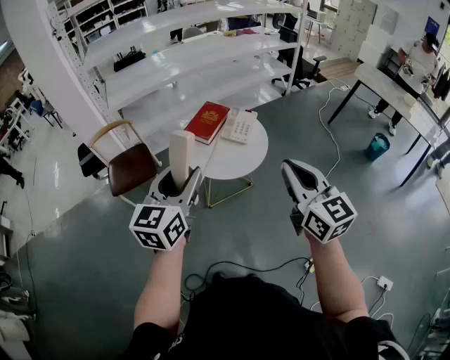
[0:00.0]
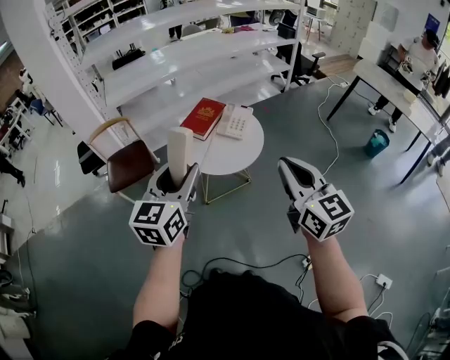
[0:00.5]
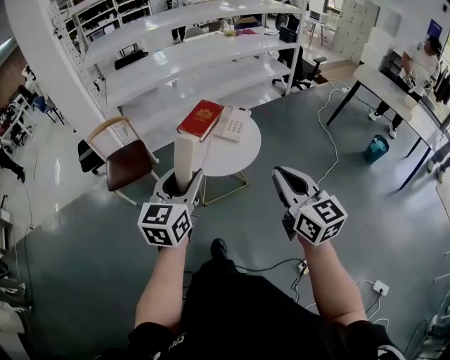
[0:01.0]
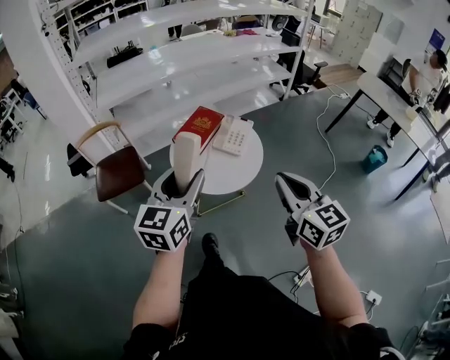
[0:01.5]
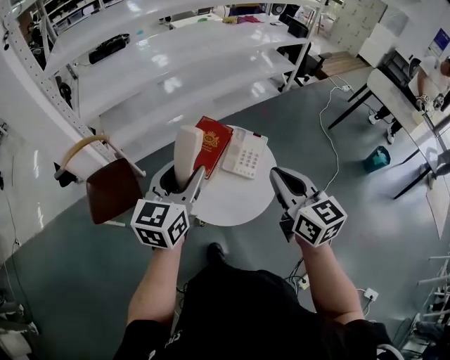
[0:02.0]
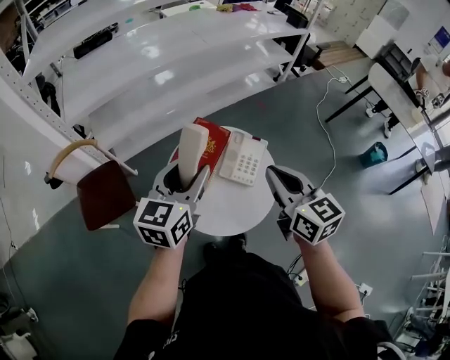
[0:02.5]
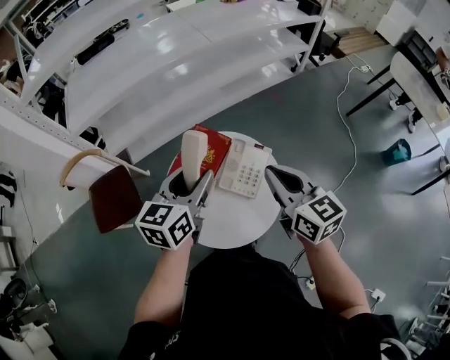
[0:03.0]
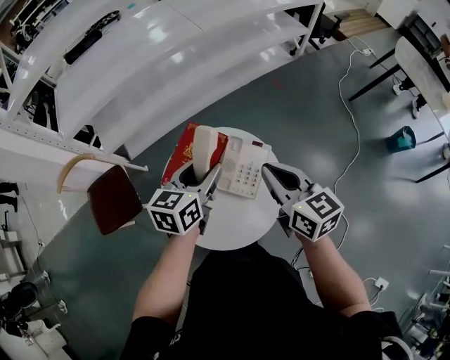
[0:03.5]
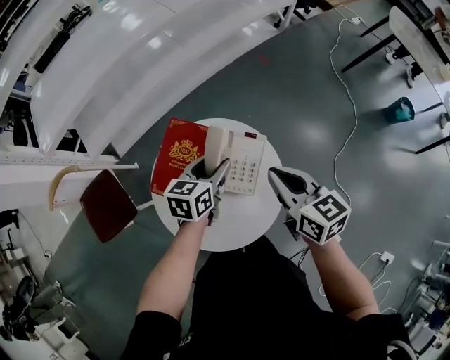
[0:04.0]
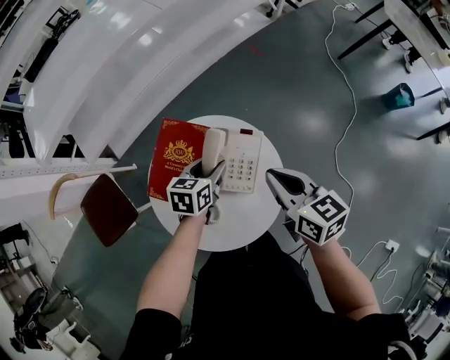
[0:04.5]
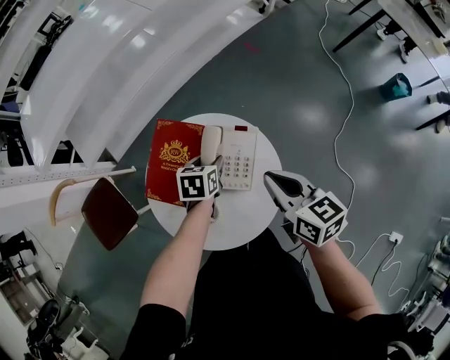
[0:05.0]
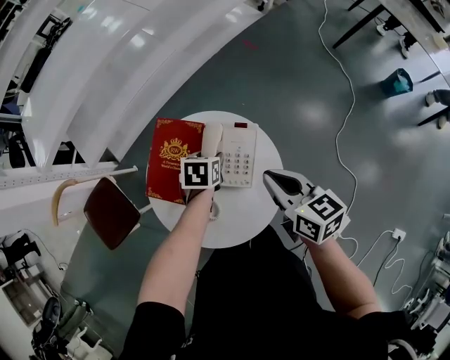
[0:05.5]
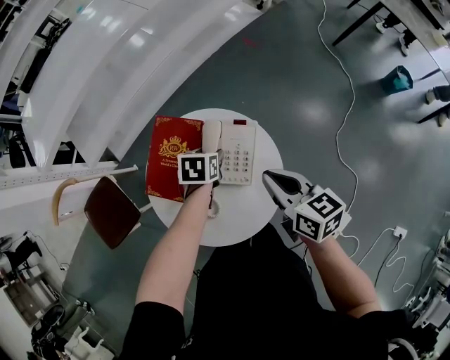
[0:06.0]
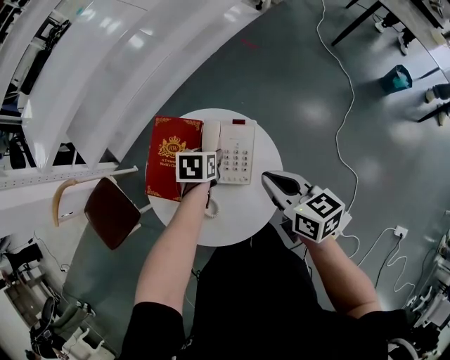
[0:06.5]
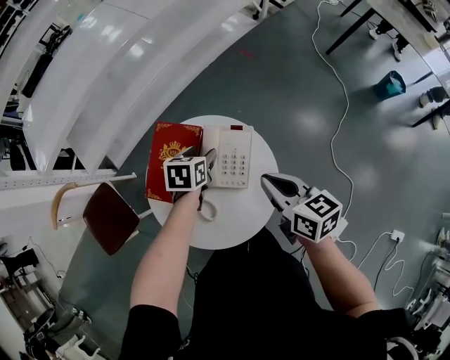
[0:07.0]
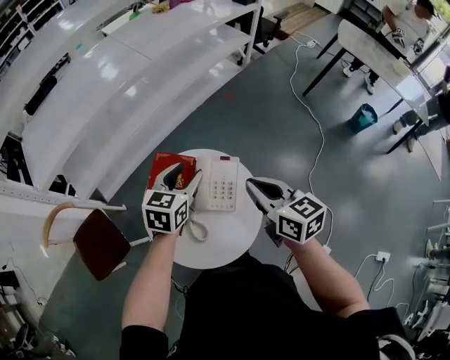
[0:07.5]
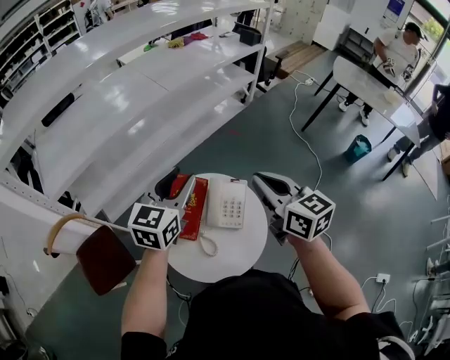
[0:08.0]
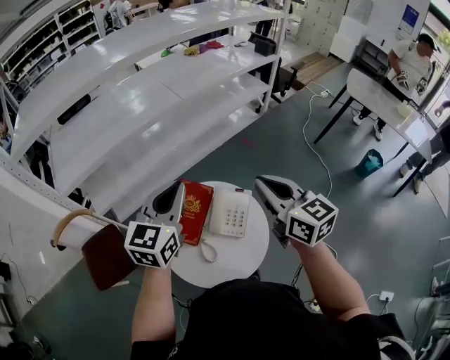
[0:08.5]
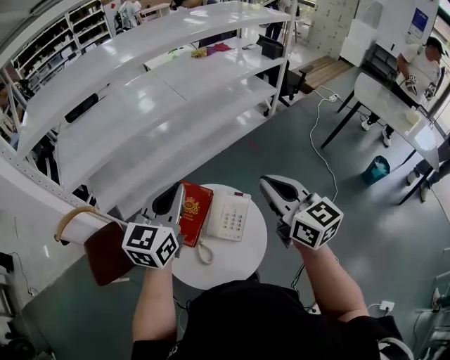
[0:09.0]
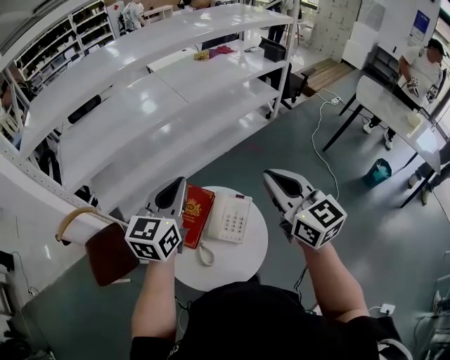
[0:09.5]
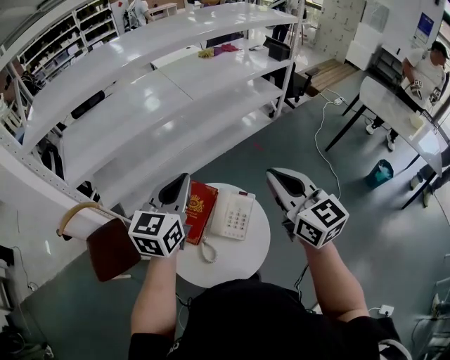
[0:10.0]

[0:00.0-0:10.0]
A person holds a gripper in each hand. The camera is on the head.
0:00.0 to 0:02.0: The grippers both shift forward by roughly 30 cm.
0:02.0 to 0:04.0: The right gripper travels forward, downward and to the right by about 25 cm, and rotates roughly 20 degrees, while the left gripper shifts approximately 35 cm downward, forward and to the right, and turns by some 30 degrees.
0:04.0 to 0:06.0: The left gripper goes some 10 cm downward, and rotates roughly 30 degrees. Meanwhile the right gripper heads downward, covering about 5 cm.
0:06.0 to 0:08.0: The left gripper travels upward by roughly 35 cm, and angles its fingers upward, by about 50 degrees. Meanwhile the right gripper goes some 20 cm upward, and changes its angle by approximately 20 degrees.
0:08.0 to 0:10.0: The left gripper changes place by roughly 5 cm, and closes. The right gripper heads upward, covering roughly 5 cm.

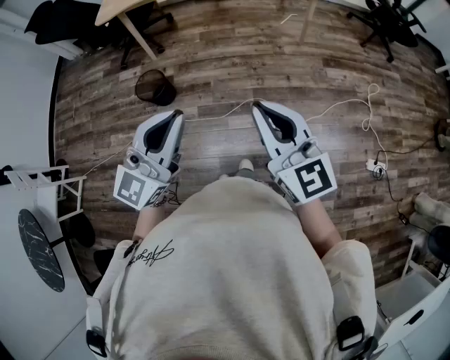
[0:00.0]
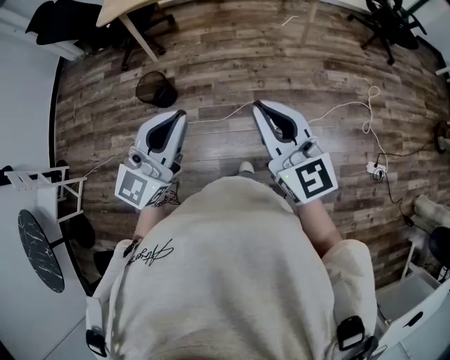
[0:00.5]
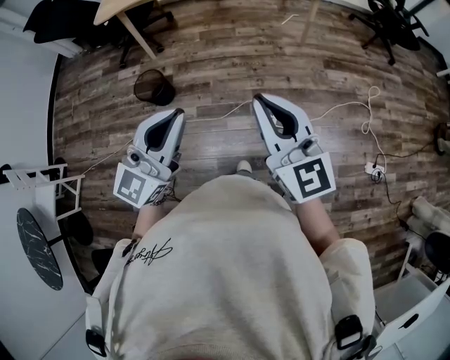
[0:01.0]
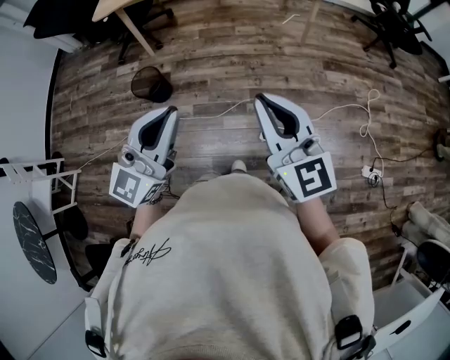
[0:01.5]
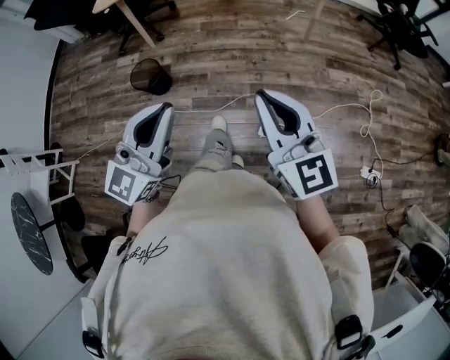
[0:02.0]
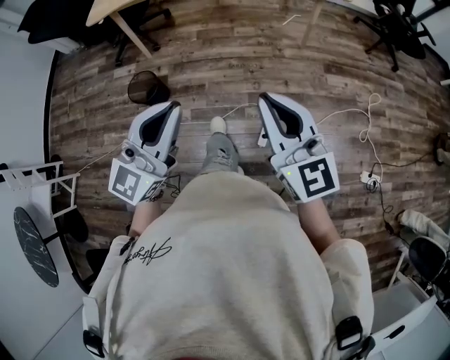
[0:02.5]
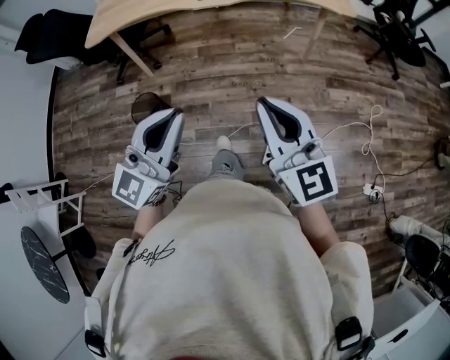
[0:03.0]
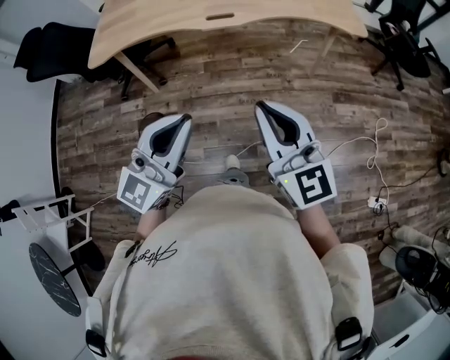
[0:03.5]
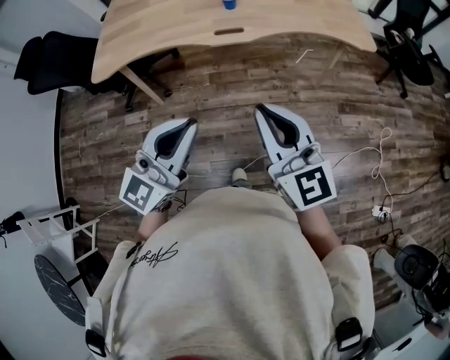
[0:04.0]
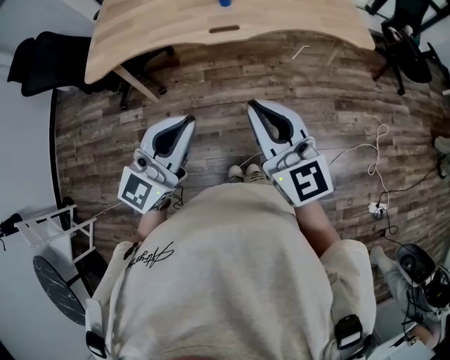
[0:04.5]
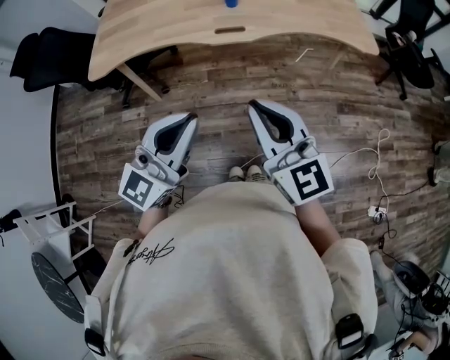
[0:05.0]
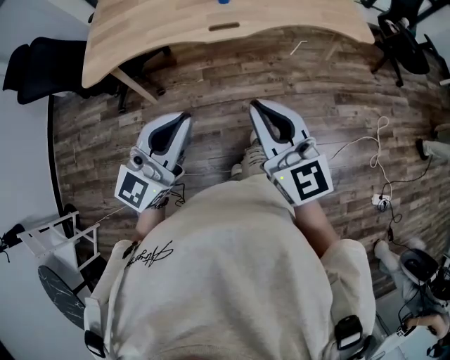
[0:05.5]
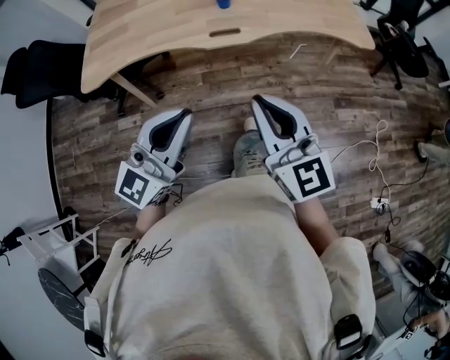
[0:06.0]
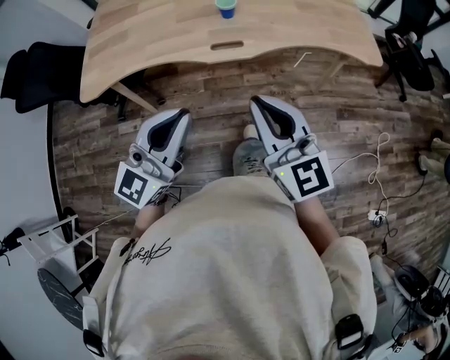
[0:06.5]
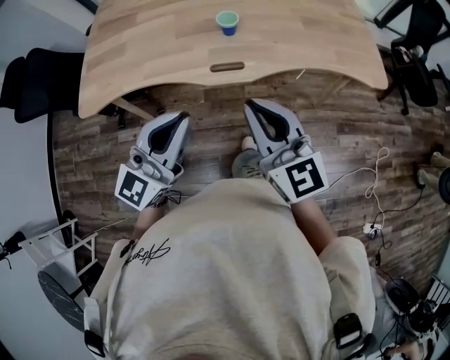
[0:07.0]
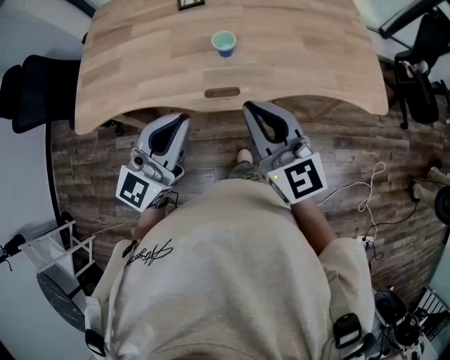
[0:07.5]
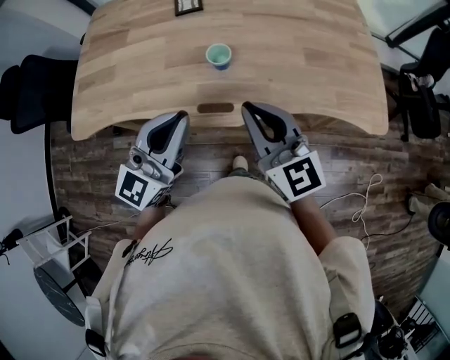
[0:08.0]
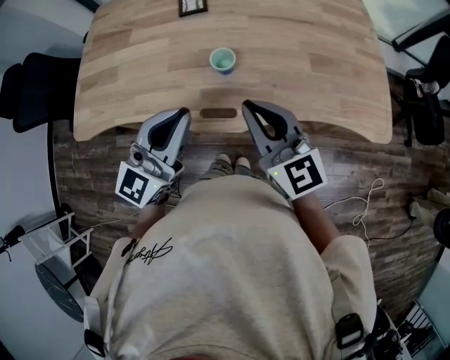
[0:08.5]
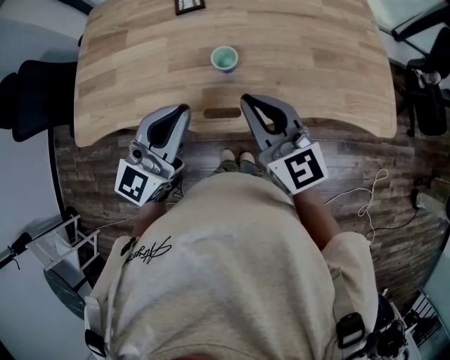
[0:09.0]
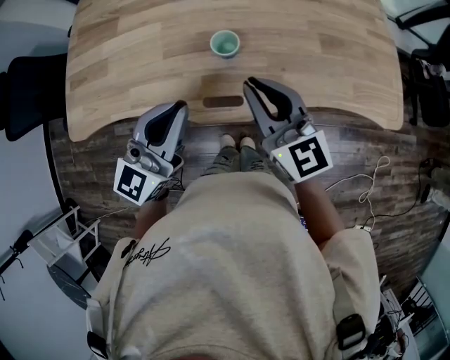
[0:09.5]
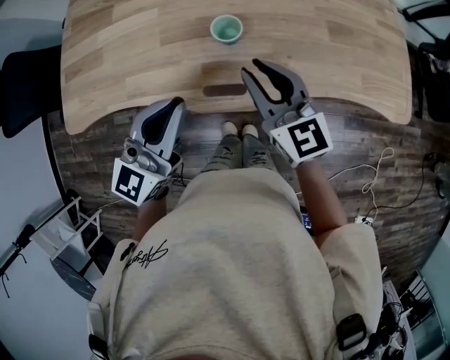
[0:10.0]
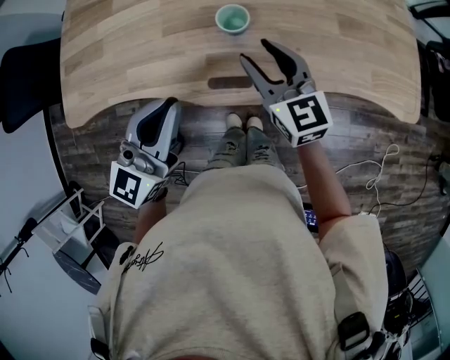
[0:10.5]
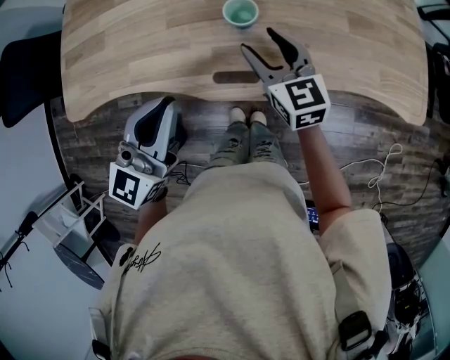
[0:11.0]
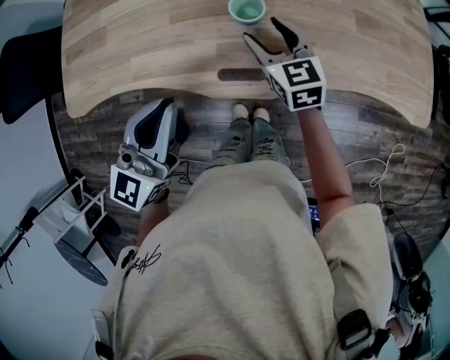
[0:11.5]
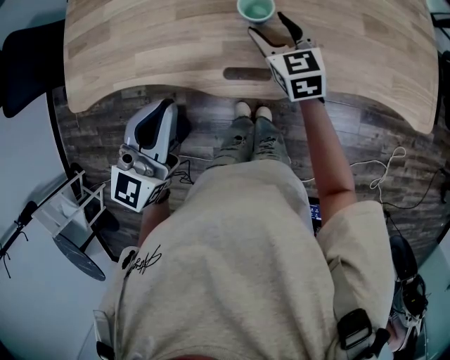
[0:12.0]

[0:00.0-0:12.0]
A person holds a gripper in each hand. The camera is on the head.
0:00.0 to 0:02.0: The right gripper changes place by about 5 cm.
0:02.0 to 0:04.0: The grippers both shift forward by some 30 cm.
0:04.0 to 0:06.0: The grippers both shift forward by about 5 cm.
0:06.0 to 0:08.0: Both grippers travel together forward, about 30 cm.
0:08.0 to 0:10.0: The right gripper goes some 10 cm downward and forward. The left gripper shifts approximately 5 cm downward.
0:10.0 to 0:12.0: The right gripper is displaced downward and forward by approximately 15 cm, and opens up. The left gripper goes roughly 5 cm to the left.

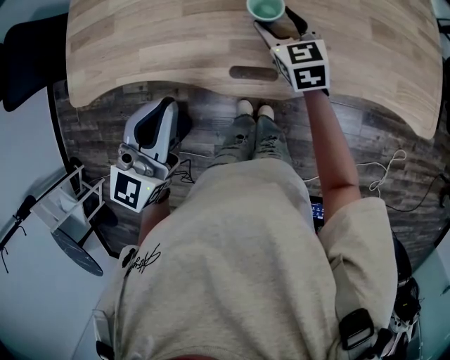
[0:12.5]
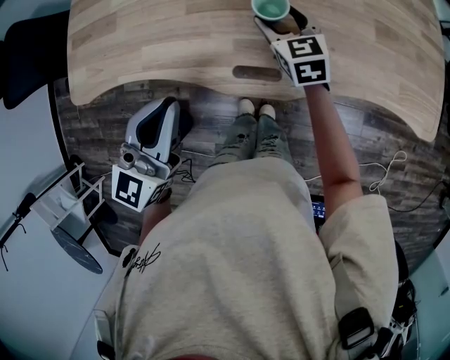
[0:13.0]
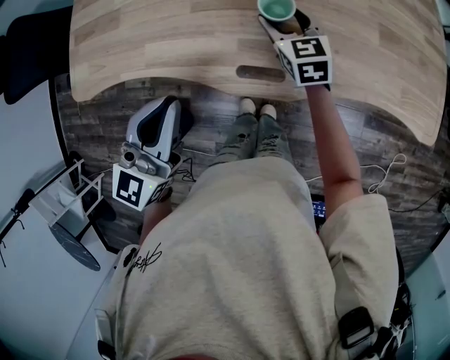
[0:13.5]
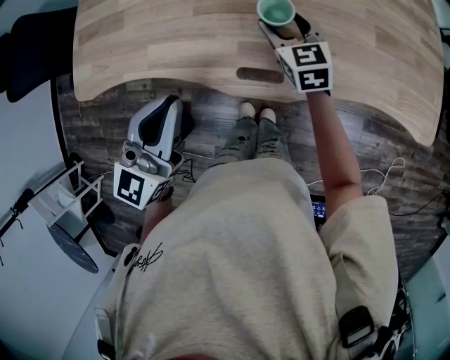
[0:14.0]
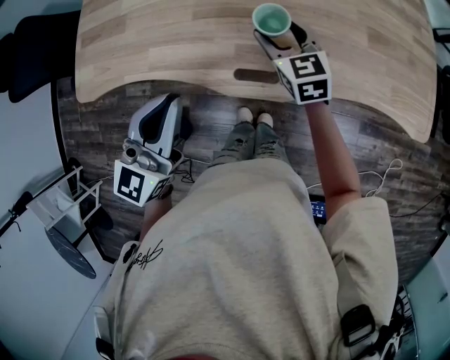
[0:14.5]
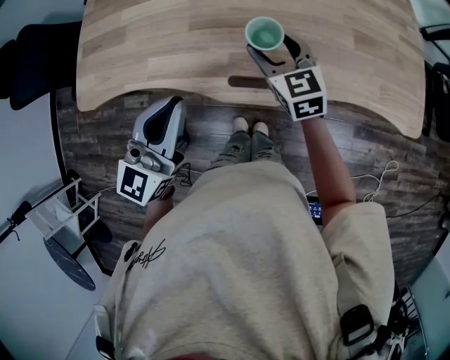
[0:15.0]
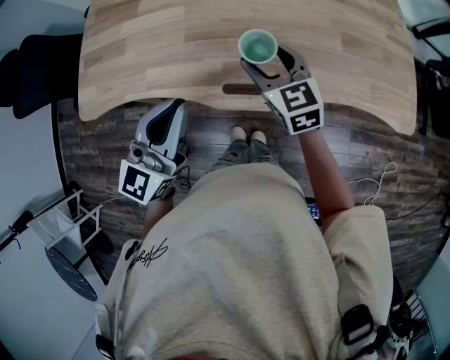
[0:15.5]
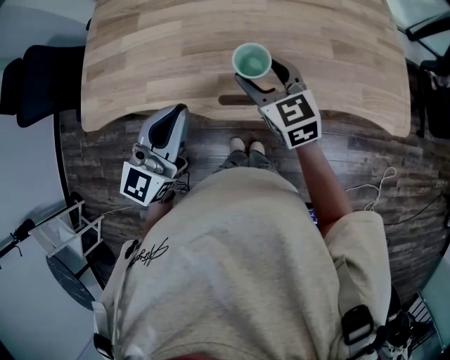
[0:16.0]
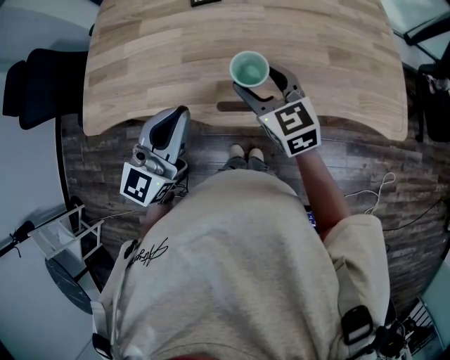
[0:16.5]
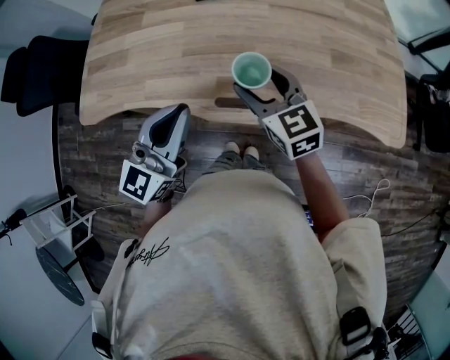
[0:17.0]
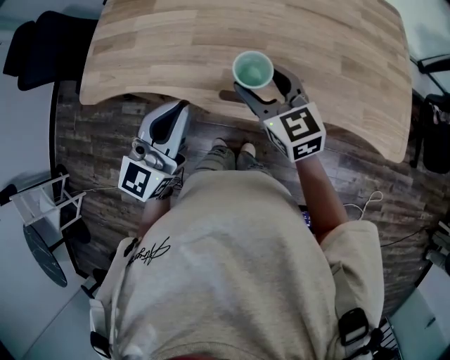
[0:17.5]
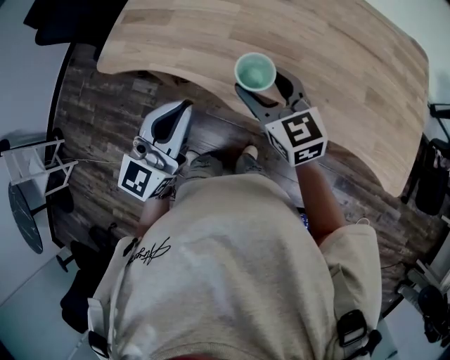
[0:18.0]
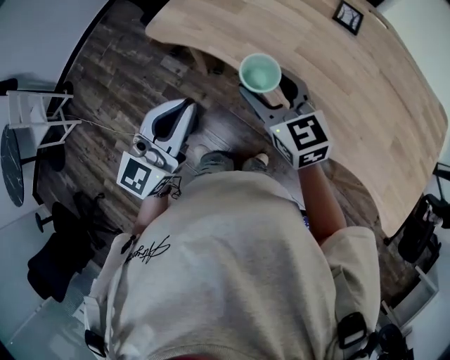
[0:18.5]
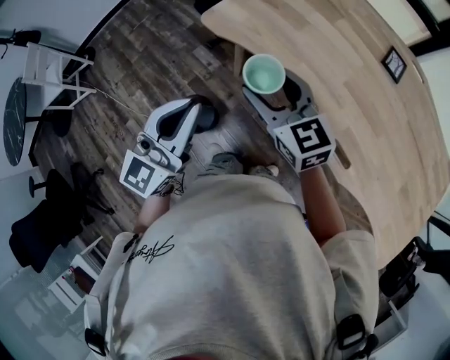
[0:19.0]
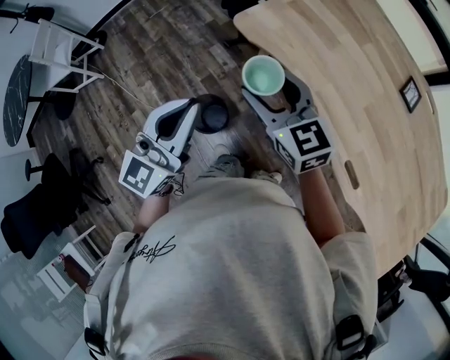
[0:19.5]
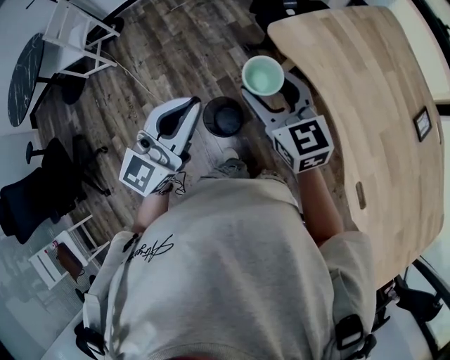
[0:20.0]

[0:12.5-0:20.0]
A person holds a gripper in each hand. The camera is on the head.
0:12.5 to 0:14.5: The right gripper moves approximately 5 cm.
0:14.5 to 0:16.5: The right gripper goes approximately 15 cm upward and backward. Meanwhile the left gripper shifts by some 5 cm.
0:16.5 to 0:18.0: The left gripper shifts roughly 5 cm to the left; the right gripper travels to the left by about 10 cm.
0:18.0 to 0:20.0: The two grippers travel together, approximately 50 cm. The left gripper rotates approximately 40 degrees; the right gripper rotates about 40 degrees.
